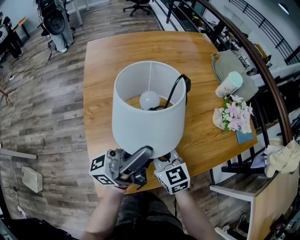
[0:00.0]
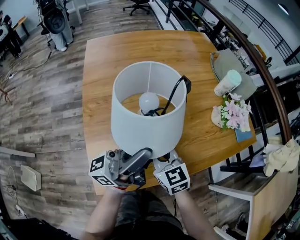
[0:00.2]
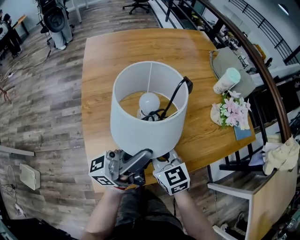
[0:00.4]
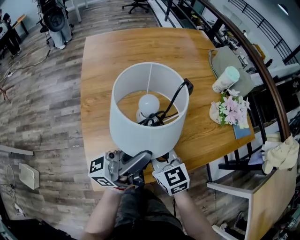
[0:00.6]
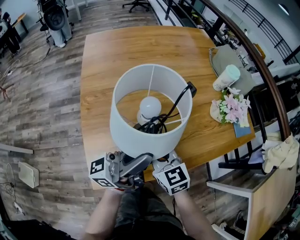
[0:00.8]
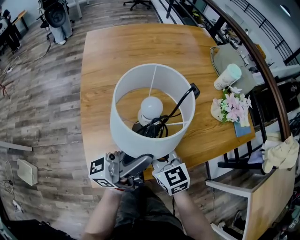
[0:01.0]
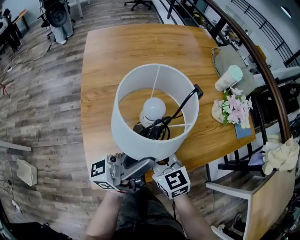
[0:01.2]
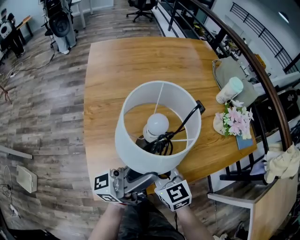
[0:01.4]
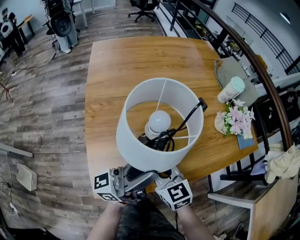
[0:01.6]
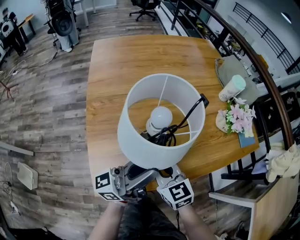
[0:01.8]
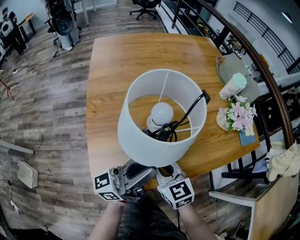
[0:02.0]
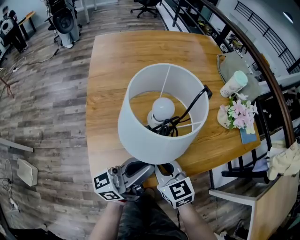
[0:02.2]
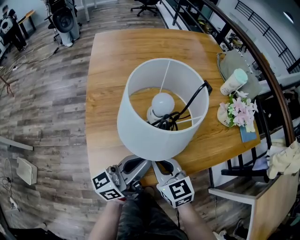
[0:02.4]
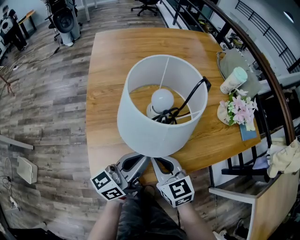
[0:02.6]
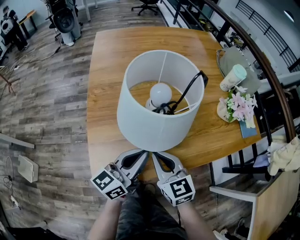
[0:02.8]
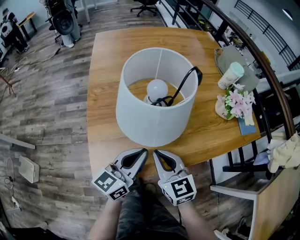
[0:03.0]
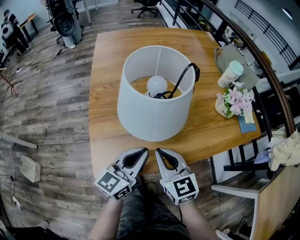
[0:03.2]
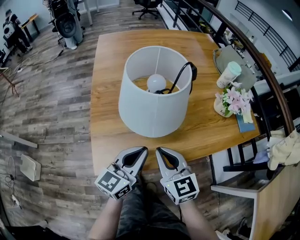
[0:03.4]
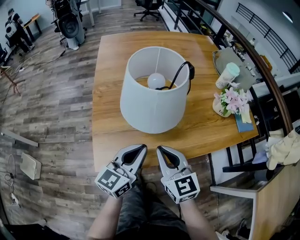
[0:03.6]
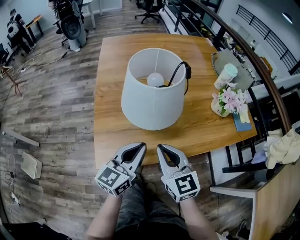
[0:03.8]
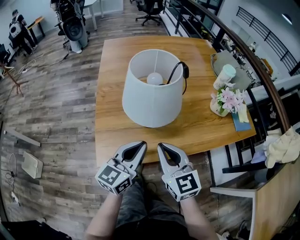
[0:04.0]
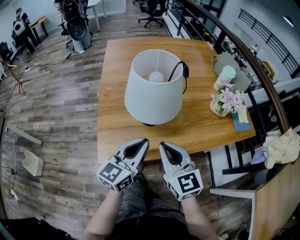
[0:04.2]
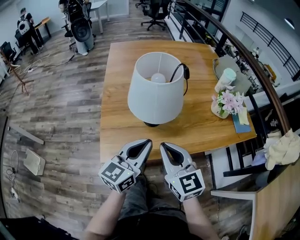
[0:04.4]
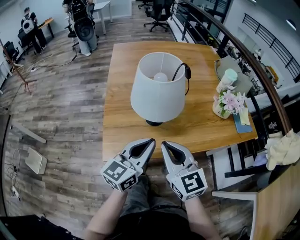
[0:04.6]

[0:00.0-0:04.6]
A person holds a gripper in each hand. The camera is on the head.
0:00.0 to 0:01.6: The grippers both shift backward by approximately 5 cm.
0:01.6 to 0:03.0: The left gripper travels downward by approximately 10 cm, and points its fingers about 40 degrees further downward.
0:03.0 to 0:04.6: The two grippers go some 10 cm upward and backward.

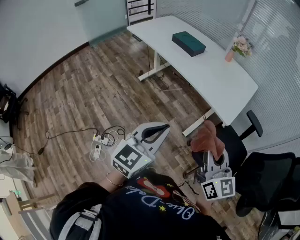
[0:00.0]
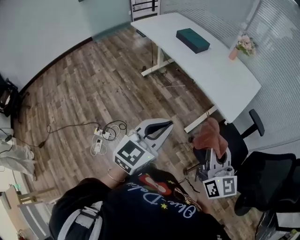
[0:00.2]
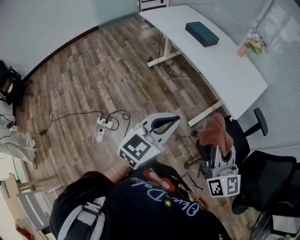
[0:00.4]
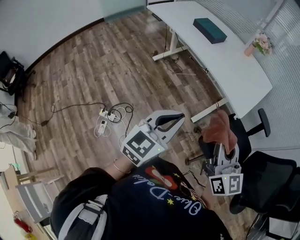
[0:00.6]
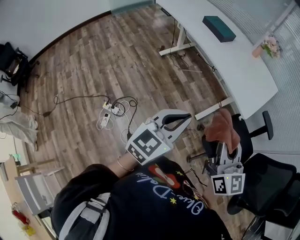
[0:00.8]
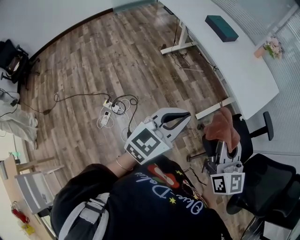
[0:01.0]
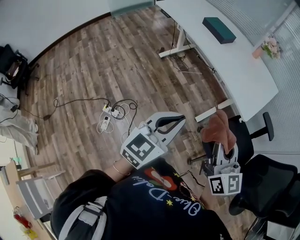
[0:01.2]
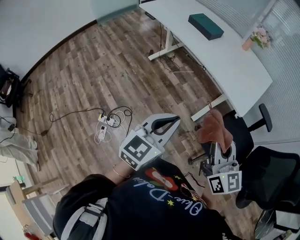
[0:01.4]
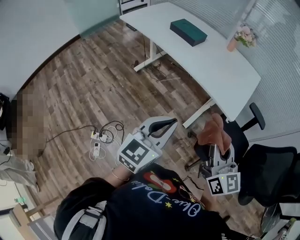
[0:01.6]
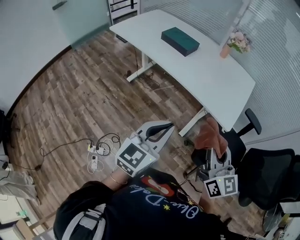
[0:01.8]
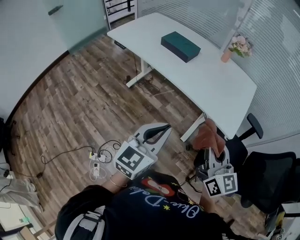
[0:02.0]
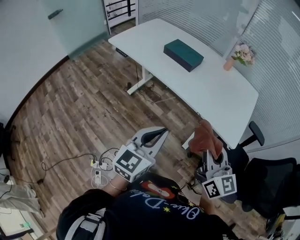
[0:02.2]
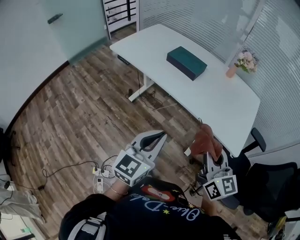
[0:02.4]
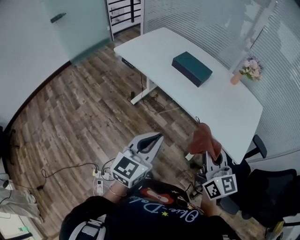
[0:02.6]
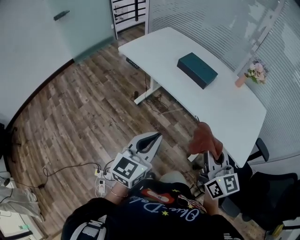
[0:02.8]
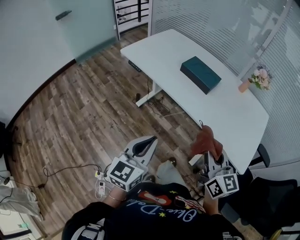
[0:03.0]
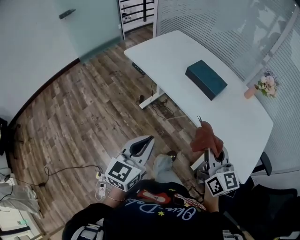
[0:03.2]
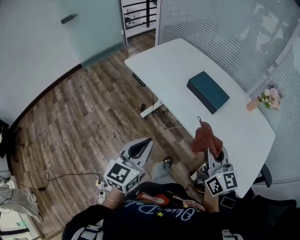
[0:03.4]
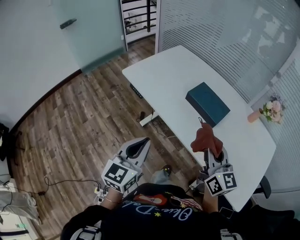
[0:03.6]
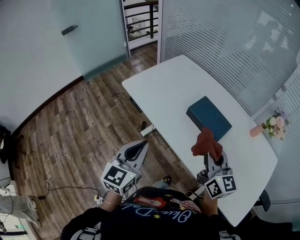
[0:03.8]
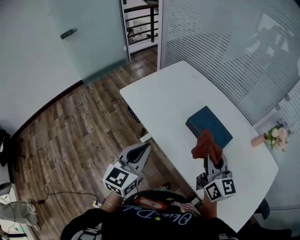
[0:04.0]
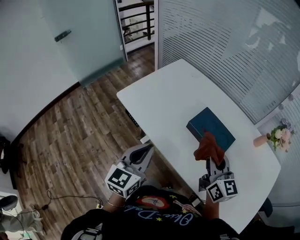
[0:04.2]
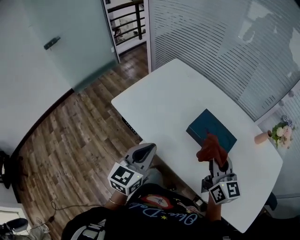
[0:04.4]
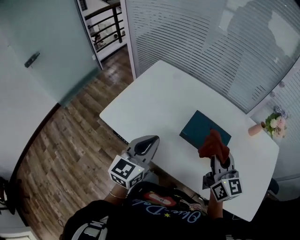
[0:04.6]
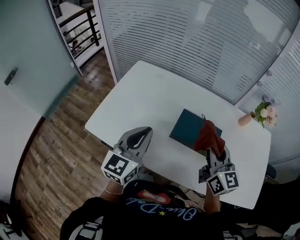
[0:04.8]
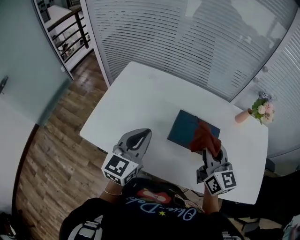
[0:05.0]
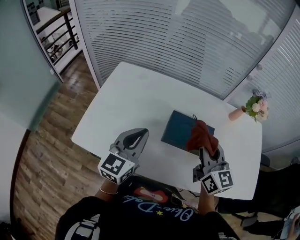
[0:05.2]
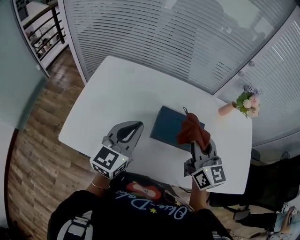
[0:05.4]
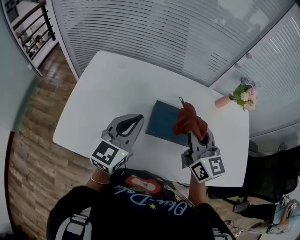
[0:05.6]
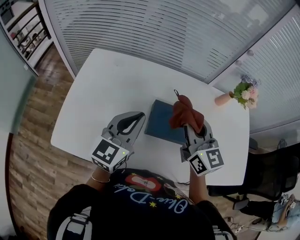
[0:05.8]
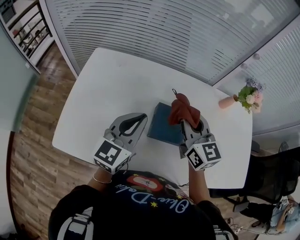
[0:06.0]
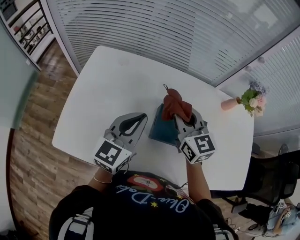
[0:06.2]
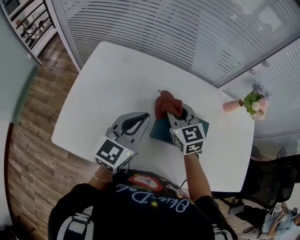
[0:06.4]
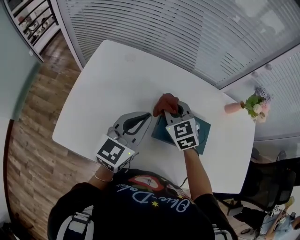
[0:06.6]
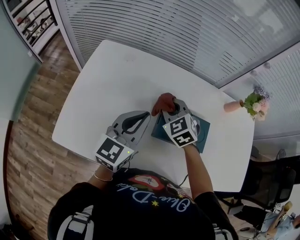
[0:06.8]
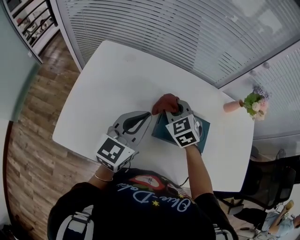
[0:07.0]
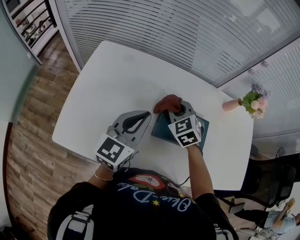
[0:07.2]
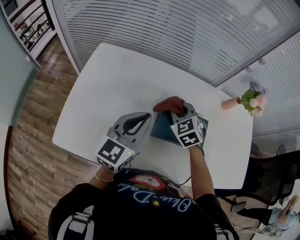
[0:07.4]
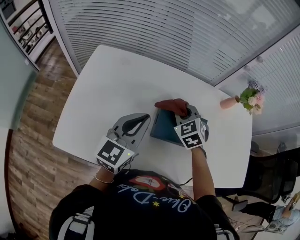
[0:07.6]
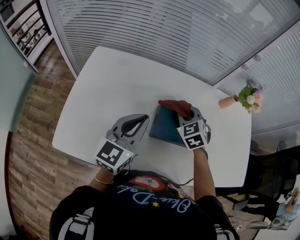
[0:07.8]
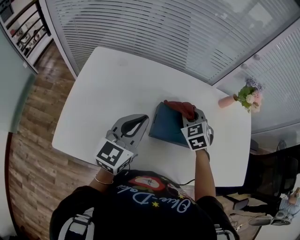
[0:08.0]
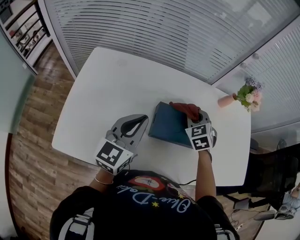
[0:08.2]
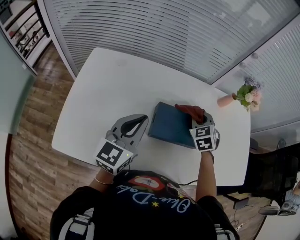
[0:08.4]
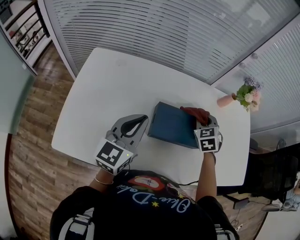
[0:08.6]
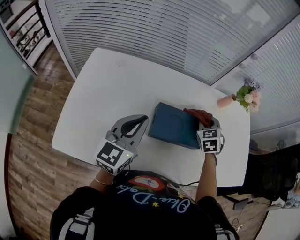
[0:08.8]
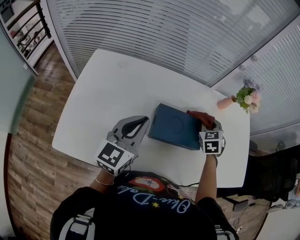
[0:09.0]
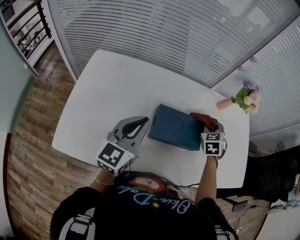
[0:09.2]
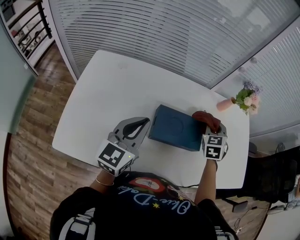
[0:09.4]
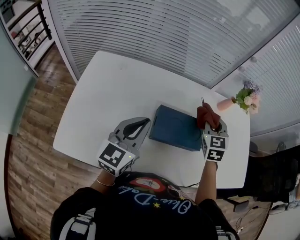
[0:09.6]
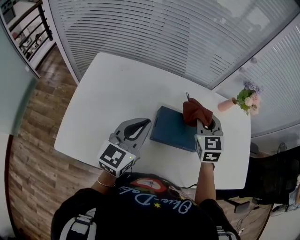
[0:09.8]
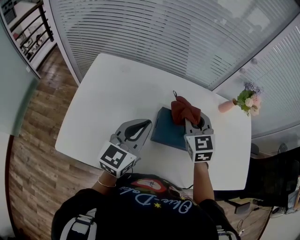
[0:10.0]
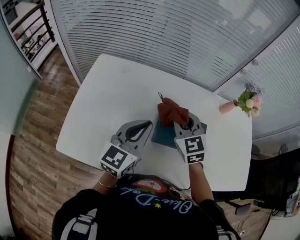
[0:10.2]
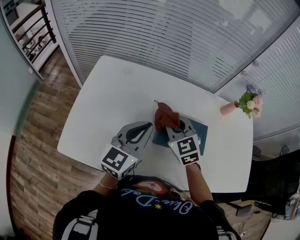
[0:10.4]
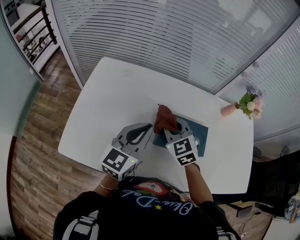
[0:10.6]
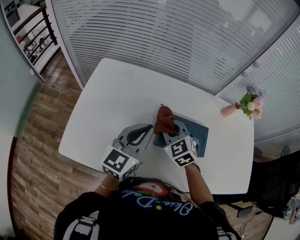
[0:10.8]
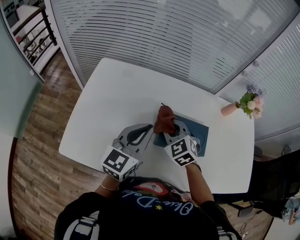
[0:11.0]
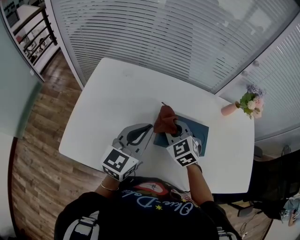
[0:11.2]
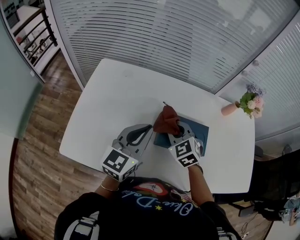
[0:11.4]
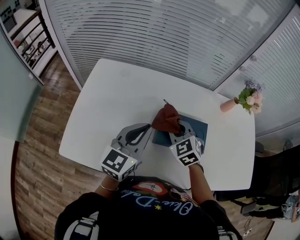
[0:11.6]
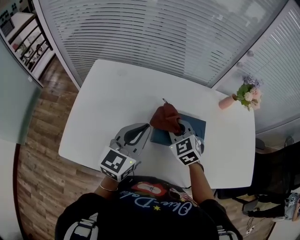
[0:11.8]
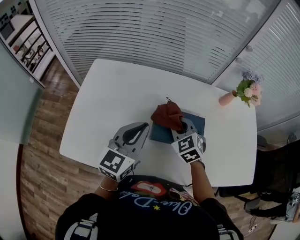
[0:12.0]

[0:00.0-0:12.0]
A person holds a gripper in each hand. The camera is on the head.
0:00.0 to 0:01.6: The right gripper shifts by roughly 5 cm. The left gripper travels forward by about 5 cm.
0:01.6 to 0:03.0: The right gripper goes some 30 cm forward and to the left, while the left gripper is displaced to the left and forward by about 30 cm.
0:03.0 to 0:04.4: Both grippers move forward, approximately 40 cm.
0:04.4 to 0:06.0: The left gripper moves some 25 cm, and turns by some 40 degrees. The right gripper ends up some 20 cm from where it was, and swivels some 20 degrees.
0:06.0 to 0:07.6: The right gripper goes about 10 cm downward, and points its fingers roughly 30 degrees further downward.
0:07.6 to 0:09.0: The right gripper shifts some 15 cm to the right, and swivels approximately 20 degrees.
0:09.0 to 0:10.4: The right gripper heads to the left, covering roughly 20 cm, and changes its angle by about 30 degrees.
0:10.4 to 0:12.0: The right gripper travels to the right by approximately 5 cm.

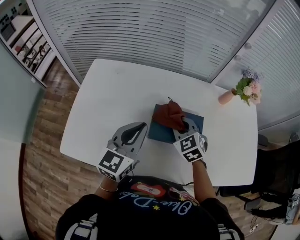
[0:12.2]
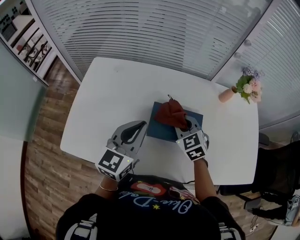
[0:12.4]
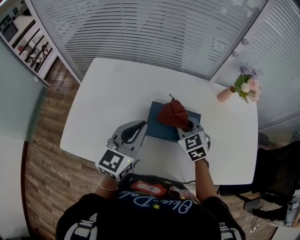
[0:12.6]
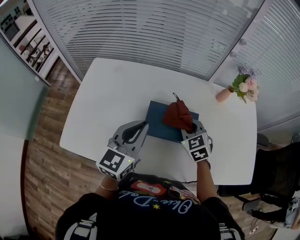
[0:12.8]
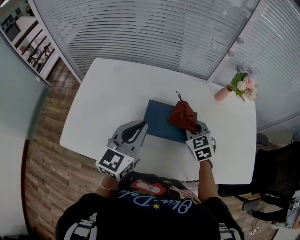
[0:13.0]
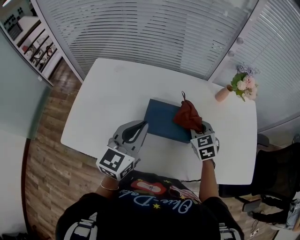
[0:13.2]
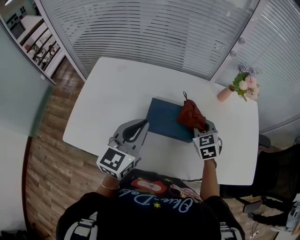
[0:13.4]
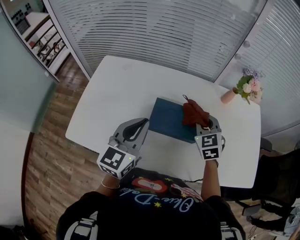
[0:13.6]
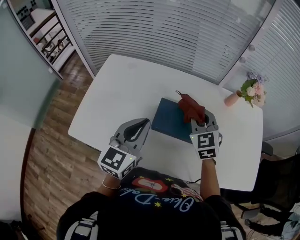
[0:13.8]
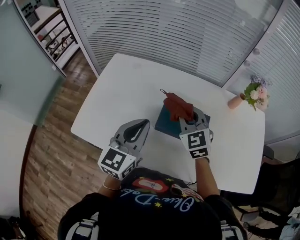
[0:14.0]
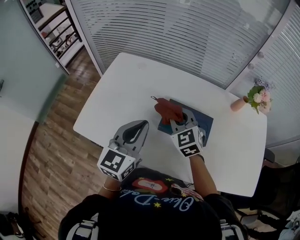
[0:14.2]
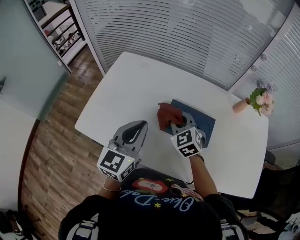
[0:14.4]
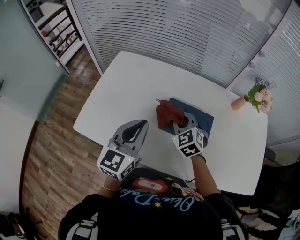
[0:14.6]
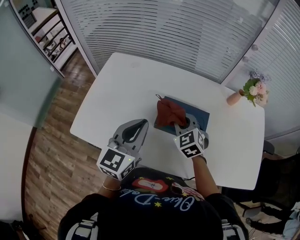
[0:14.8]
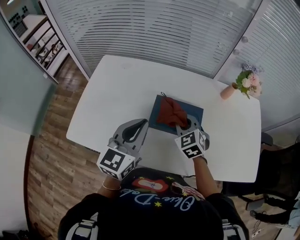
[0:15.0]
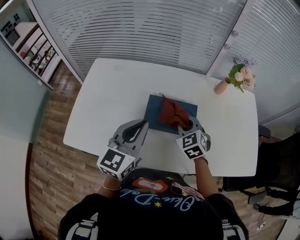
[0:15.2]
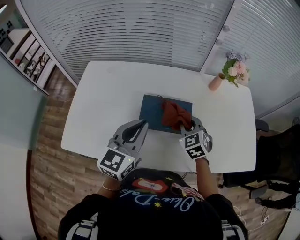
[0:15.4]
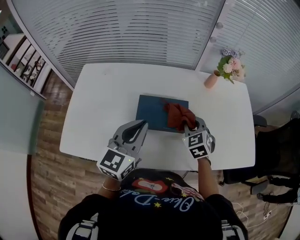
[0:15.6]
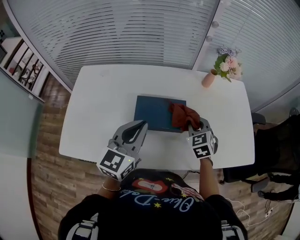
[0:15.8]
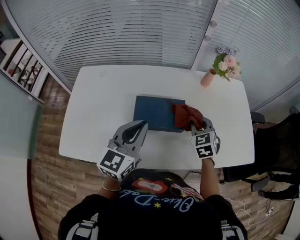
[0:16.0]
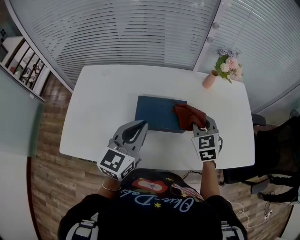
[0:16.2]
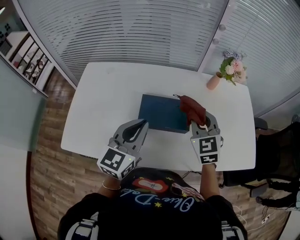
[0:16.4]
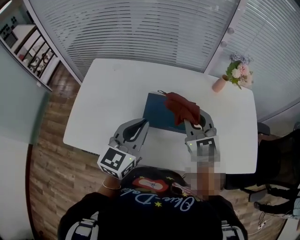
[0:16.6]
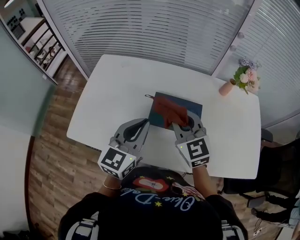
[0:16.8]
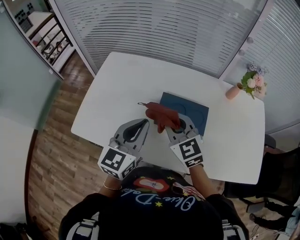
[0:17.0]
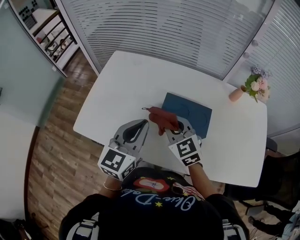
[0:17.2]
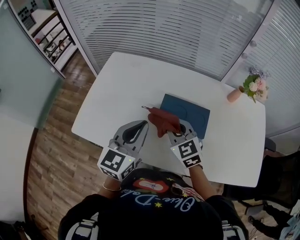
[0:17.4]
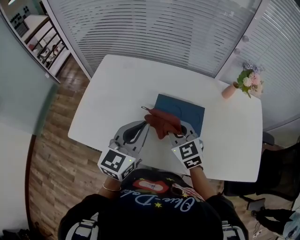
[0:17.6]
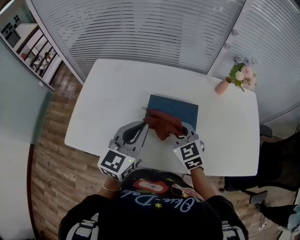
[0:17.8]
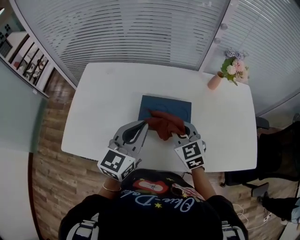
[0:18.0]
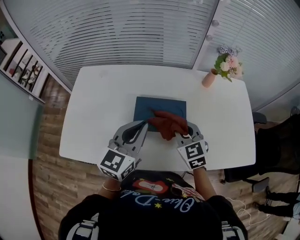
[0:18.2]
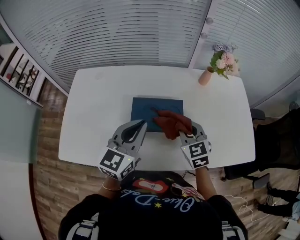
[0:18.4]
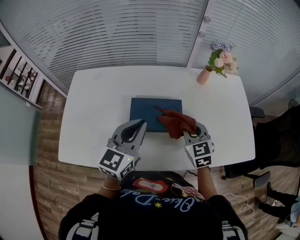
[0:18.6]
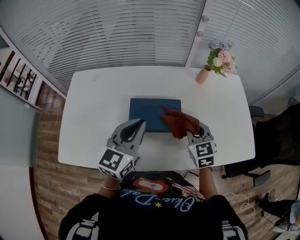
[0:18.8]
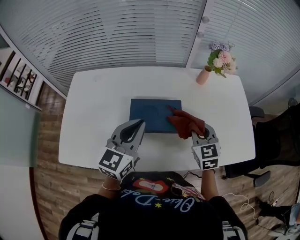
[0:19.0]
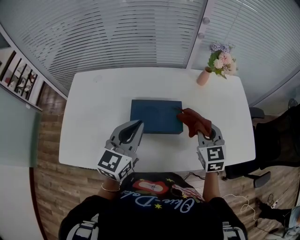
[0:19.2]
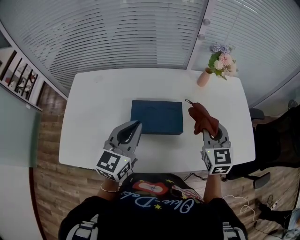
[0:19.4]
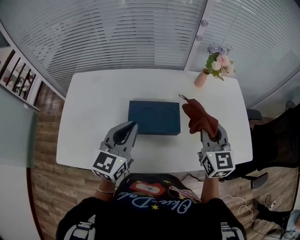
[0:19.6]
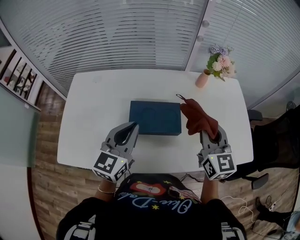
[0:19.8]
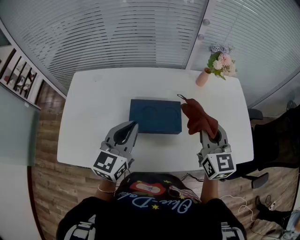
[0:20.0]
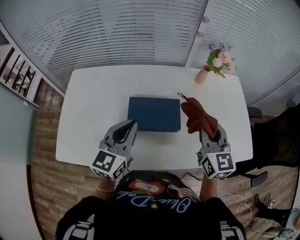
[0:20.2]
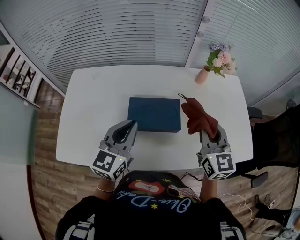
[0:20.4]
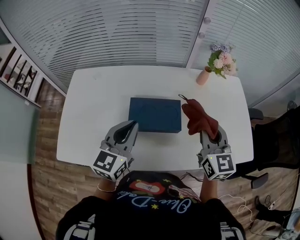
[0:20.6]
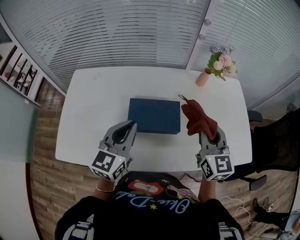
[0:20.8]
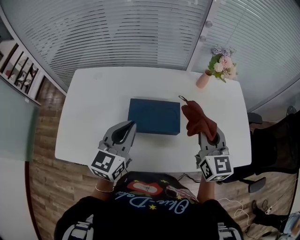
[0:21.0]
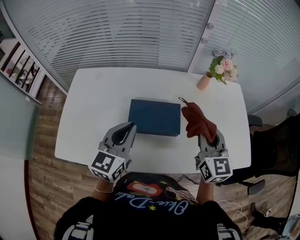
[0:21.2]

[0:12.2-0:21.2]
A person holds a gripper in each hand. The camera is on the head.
0:12.2 to 0:13.8: The right gripper heads upward and to the right, covering about 10 cm, while the left gripper moves some 5 cm.
0:13.8 to 0:15.2: The right gripper moves downward, approximately 10 cm, and goes to the left and returns, approximately 10 cm each way.
0:15.2 to 0:16.6: The right gripper shifts about 15 cm upward, and swivels about 20 degrees.
0:16.6 to 0:18.2: The right gripper goes about 10 cm downward, and reaches roughly 15 cm to the left, then returns, while the left gripper moves approximately 5 cm to the left and comes back.
0:18.2 to 0:19.8: The right gripper is displaced upward and to the right by some 15 cm, and swivels about 30 degrees.
0:19.8 to 0:21.2: The two grippers keep their place.
